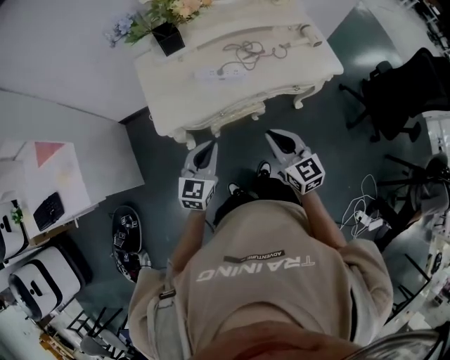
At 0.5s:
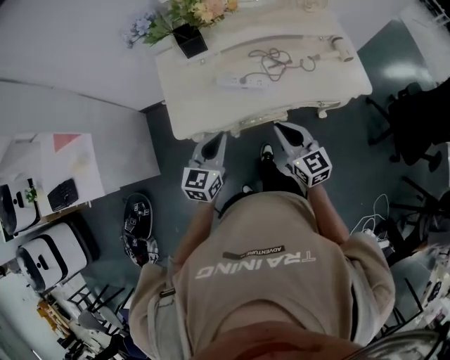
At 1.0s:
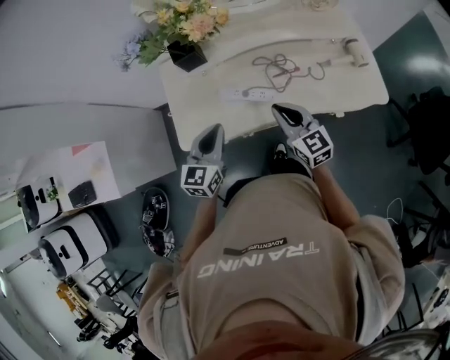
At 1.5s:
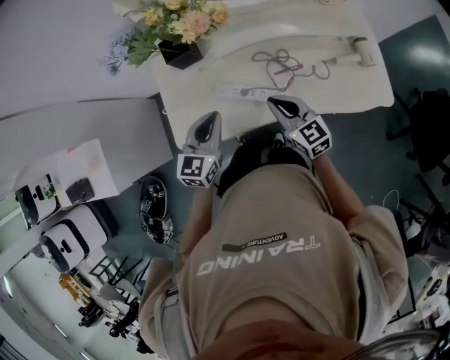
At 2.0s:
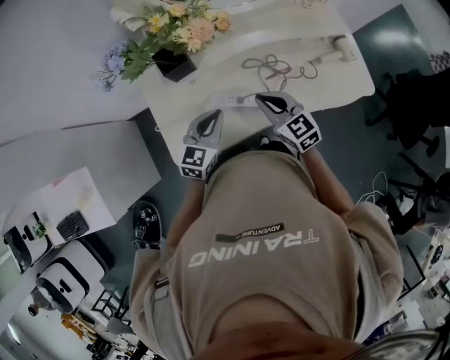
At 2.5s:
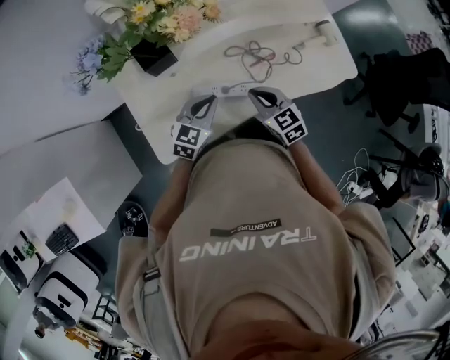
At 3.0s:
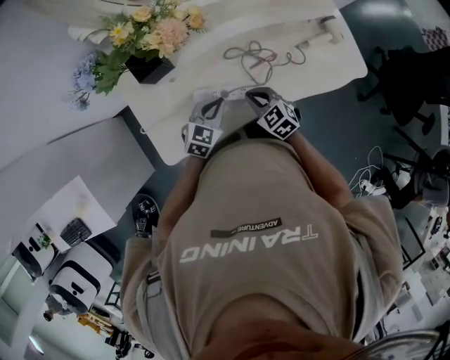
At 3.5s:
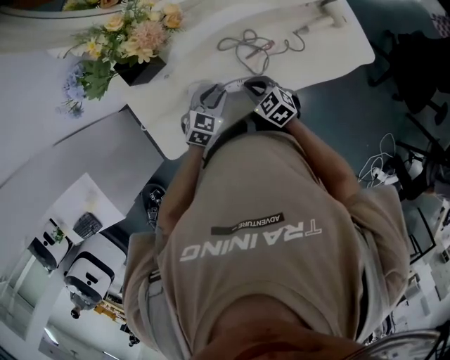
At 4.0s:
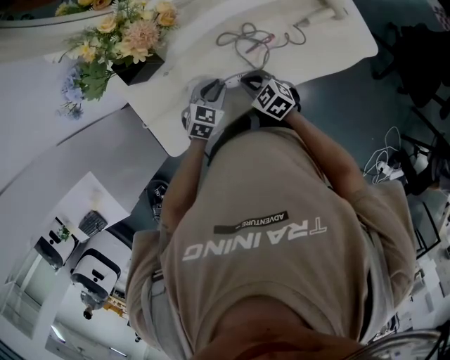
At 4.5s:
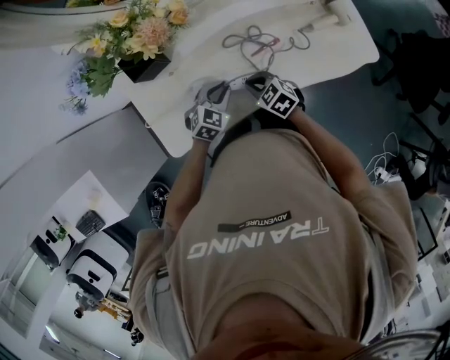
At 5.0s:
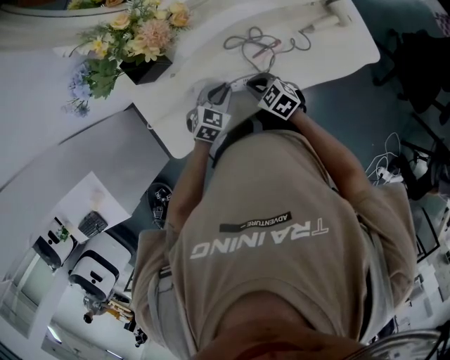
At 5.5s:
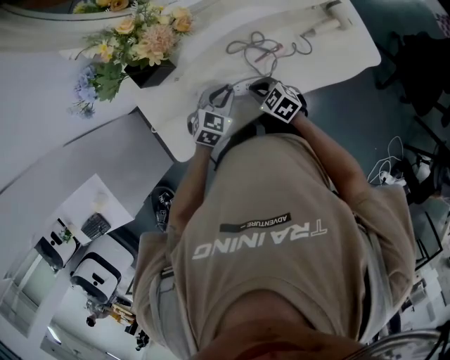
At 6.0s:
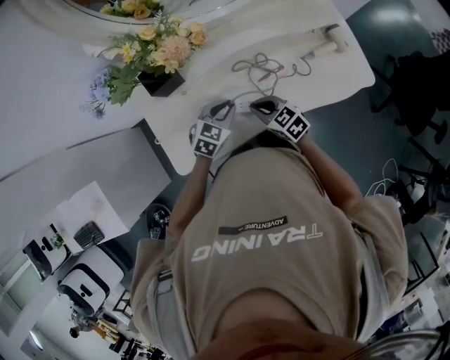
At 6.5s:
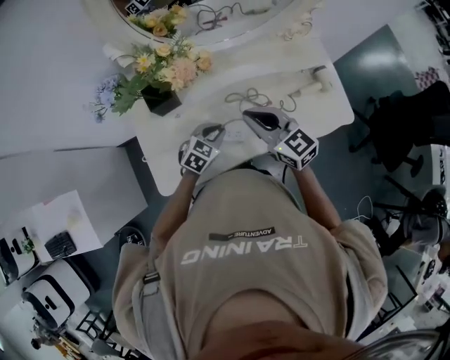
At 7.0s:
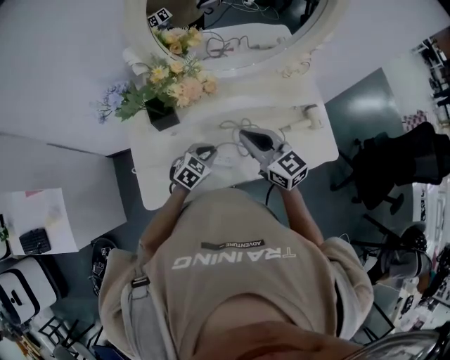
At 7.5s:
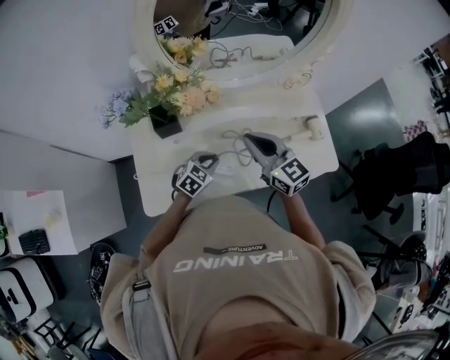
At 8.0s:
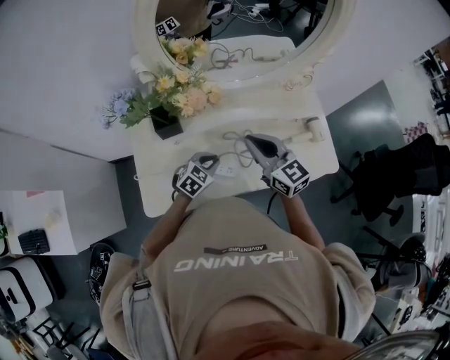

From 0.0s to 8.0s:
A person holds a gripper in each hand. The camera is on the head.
From 0.0s to 2.0s: The grippers both shift forward by approximately 30 cm.
From 2.0s to 4.0s: The right gripper travels downward by some 15 cm, and turns by some 20 degrees, while the left gripper shifts roughly 15 cm downward and to the right, and changes its angle by about 30 degrees.
From 4.0s to 6.0s: Both grippers move upward, some 5 cm.
From 6.0s to 8.0s: The right gripper travels upward by roughly 25 cm, and changes its angle by about 30 degrees.

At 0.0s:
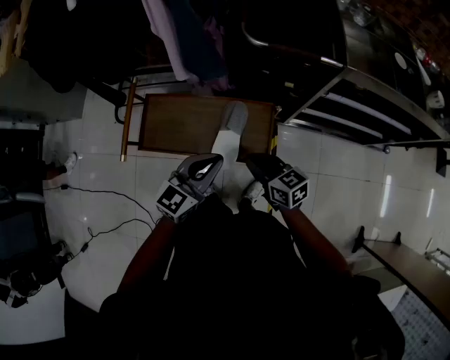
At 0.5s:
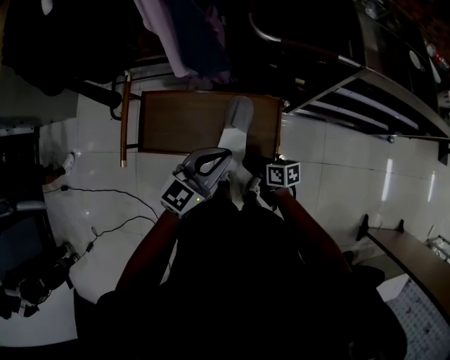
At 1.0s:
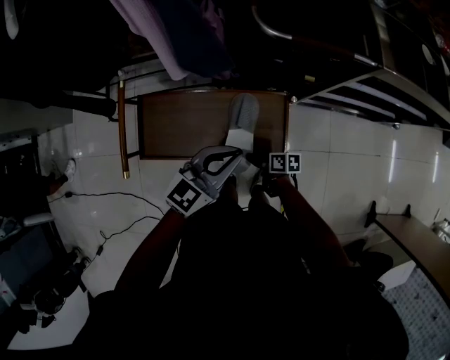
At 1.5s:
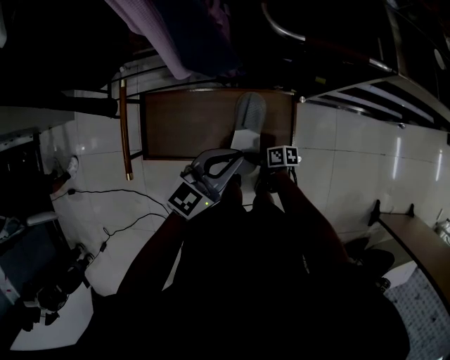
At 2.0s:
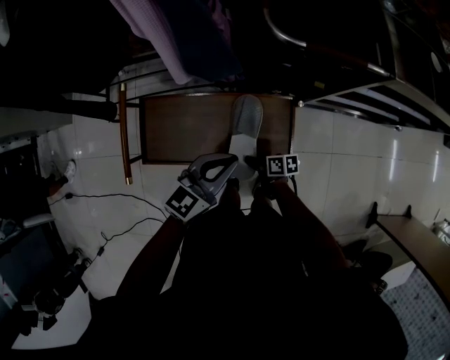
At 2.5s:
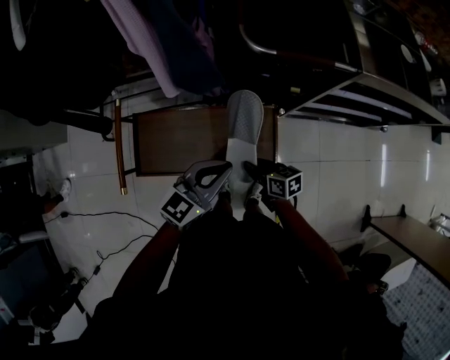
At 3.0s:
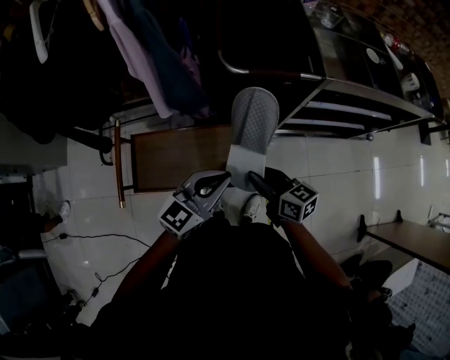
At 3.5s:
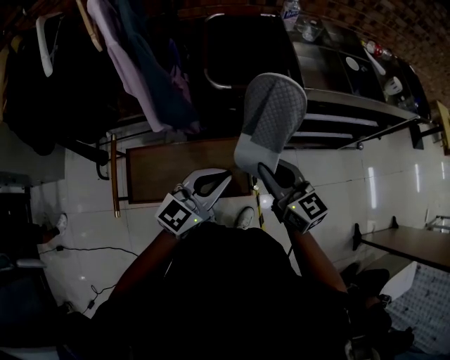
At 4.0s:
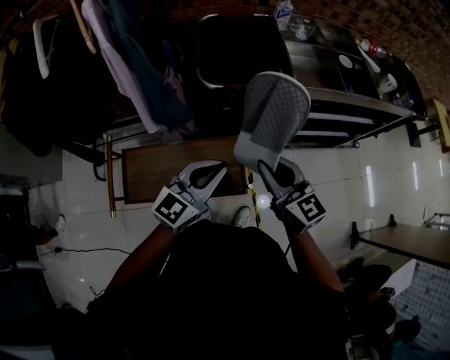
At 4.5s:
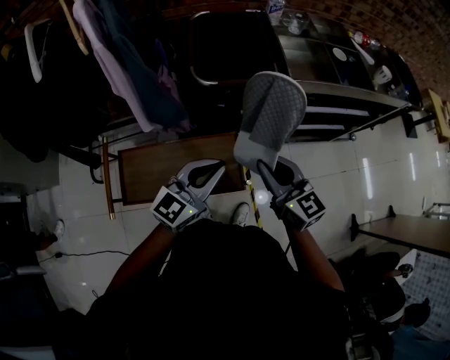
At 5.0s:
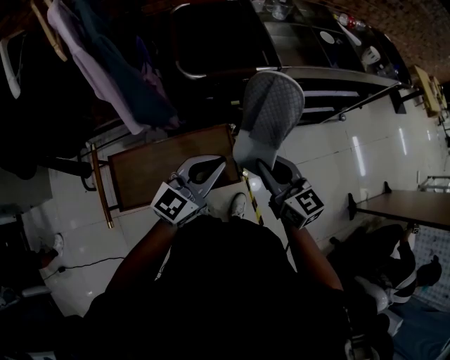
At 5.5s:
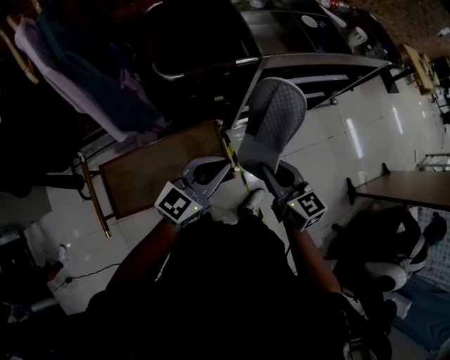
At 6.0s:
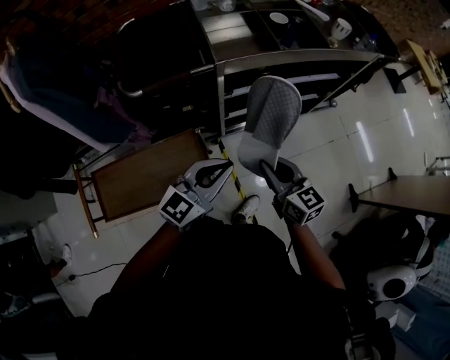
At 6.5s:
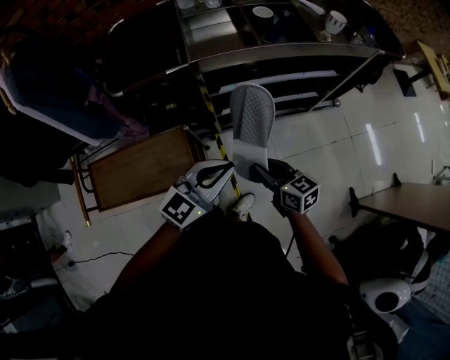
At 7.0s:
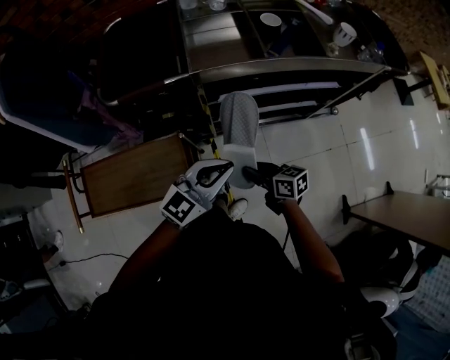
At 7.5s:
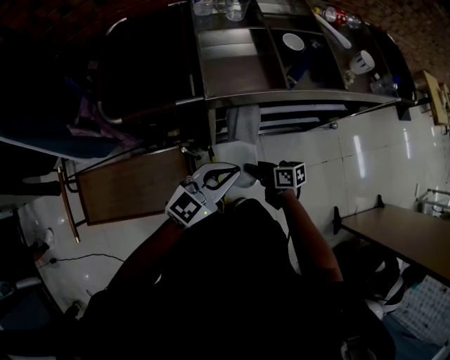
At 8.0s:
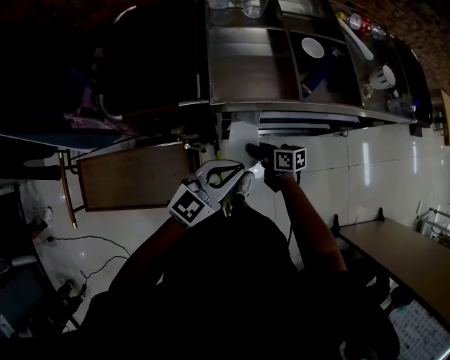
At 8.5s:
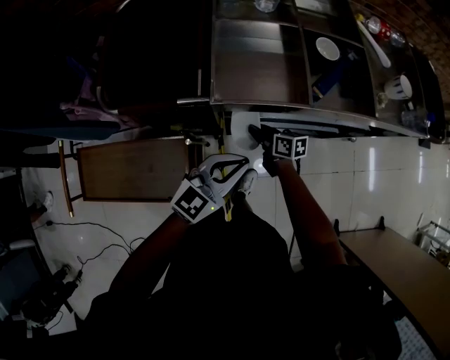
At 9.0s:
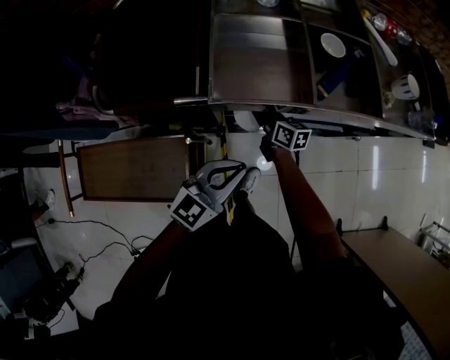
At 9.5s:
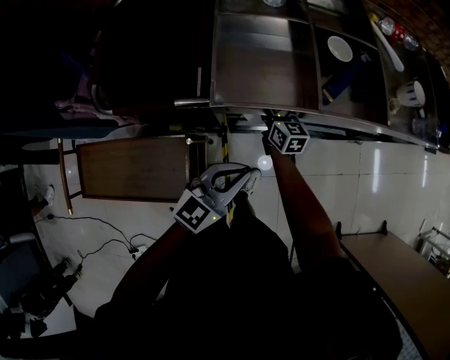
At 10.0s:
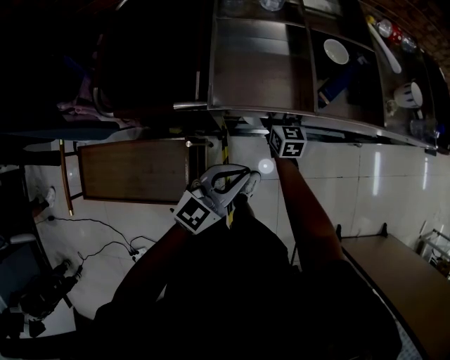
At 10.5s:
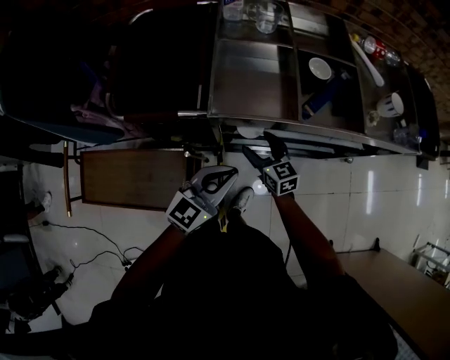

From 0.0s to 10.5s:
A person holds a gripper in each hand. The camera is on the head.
From 0.0s to 2.0s: The right gripper shifts some 25 cm downward, rotates around the line of its fingers by roughly 40 degrees, clockwise from behind, and opens and closes again, while the left gripper ends up approximately 15 cm from where it was.
From 2.0s to 4.0s: The left gripper shifts about 20 cm upward and to the right. The right gripper is displaced upward by approximately 40 cm, and swivels about 70 degrees.
From 4.0s to 6.5s: The left gripper heads to the right, covering roughly 30 cm, while the right gripper travels to the right and downward by some 35 cm, and changes its angle by approximately 30 degrees.
From 6.5s to 8.5s: The left gripper heads forward, covering roughly 20 cm, while the right gripper travels forward and downward by roughly 35 cm, and rotates roughly 20 degrees.
From 8.5s to 10.5s: The right gripper is displaced upward by approximately 5 cm, travels forward and back again, roughly 10 cm each way, rotates roughly 40 degrees, and opens.

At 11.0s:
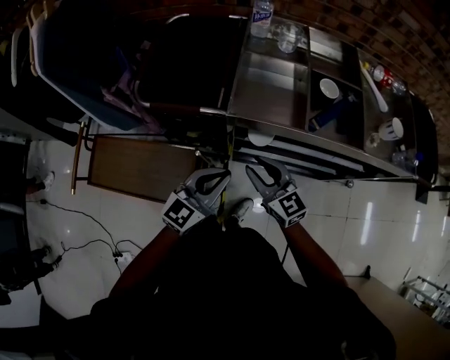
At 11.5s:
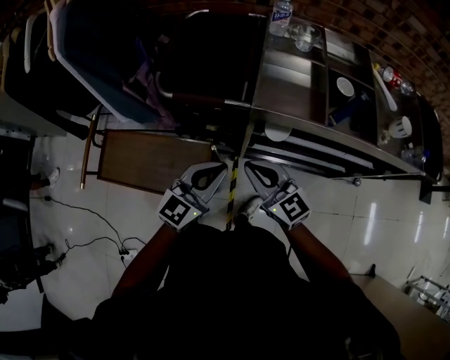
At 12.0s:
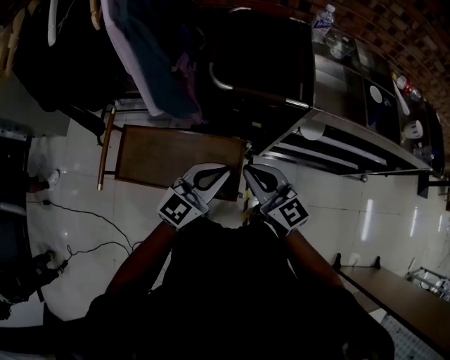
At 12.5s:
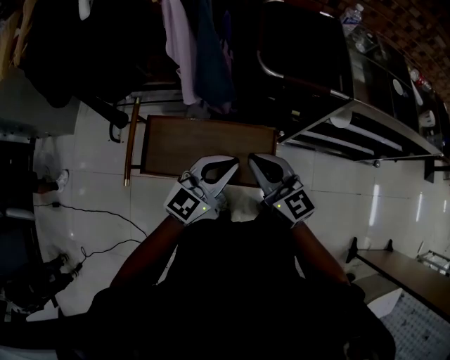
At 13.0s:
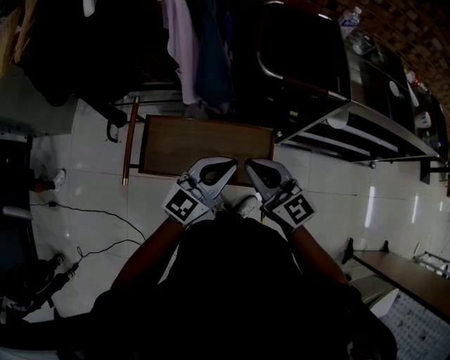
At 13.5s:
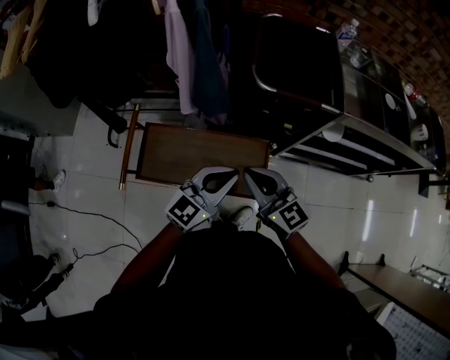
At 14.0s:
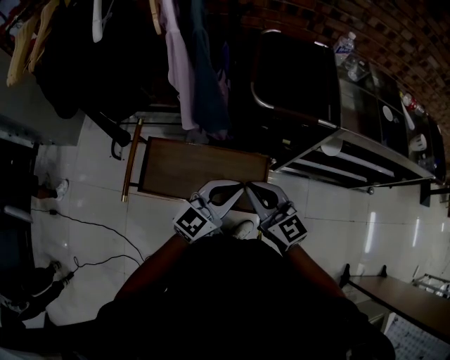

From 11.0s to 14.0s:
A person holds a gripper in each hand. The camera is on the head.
From 11.0s to 12.5s: Both grippers move to the left, some 40 cm. The right gripper closes up.
From 12.5s to 14.0s: The grippers move only a little.

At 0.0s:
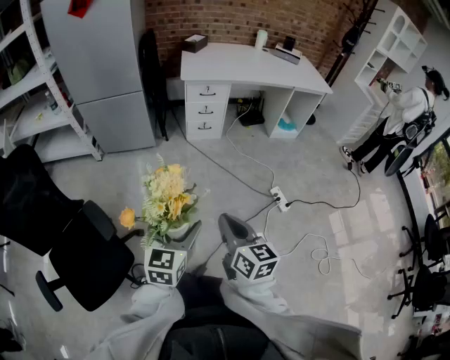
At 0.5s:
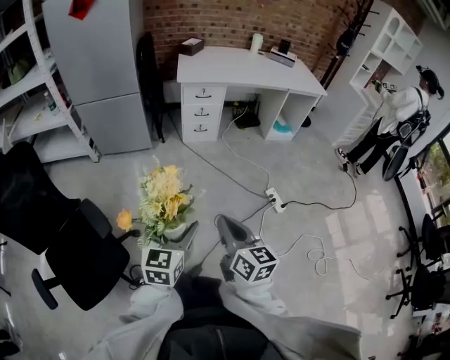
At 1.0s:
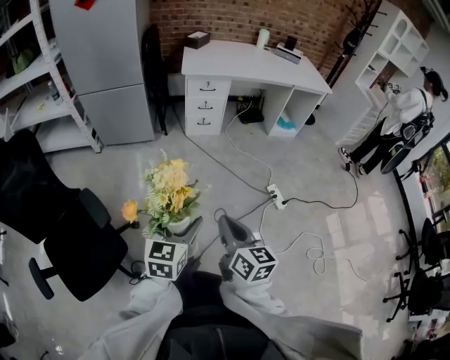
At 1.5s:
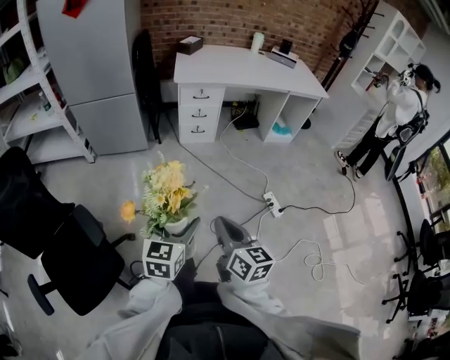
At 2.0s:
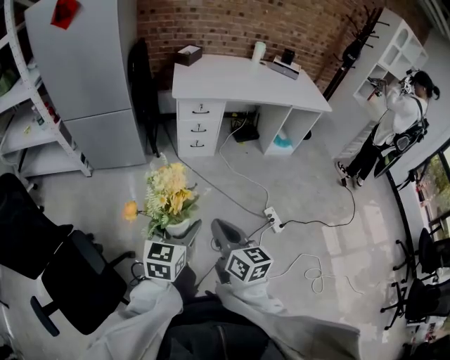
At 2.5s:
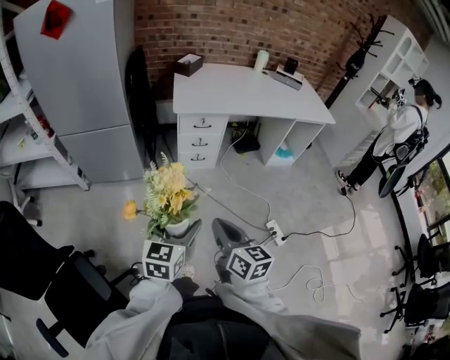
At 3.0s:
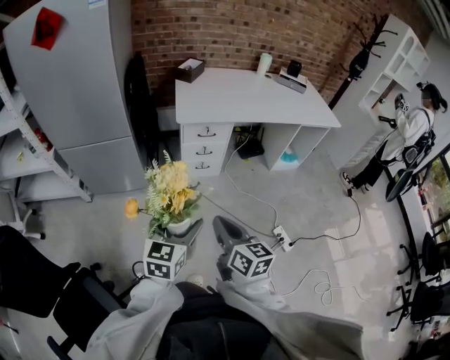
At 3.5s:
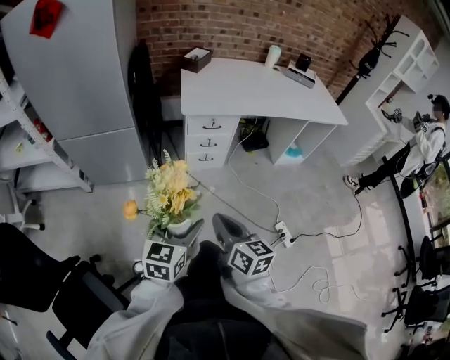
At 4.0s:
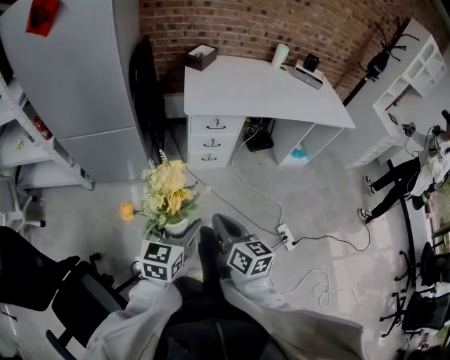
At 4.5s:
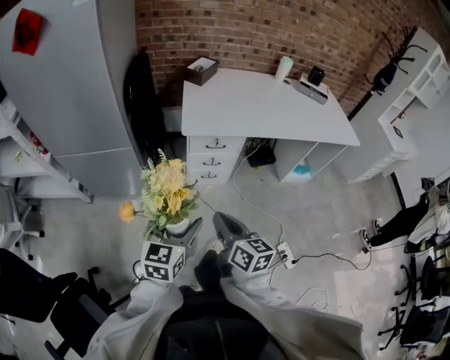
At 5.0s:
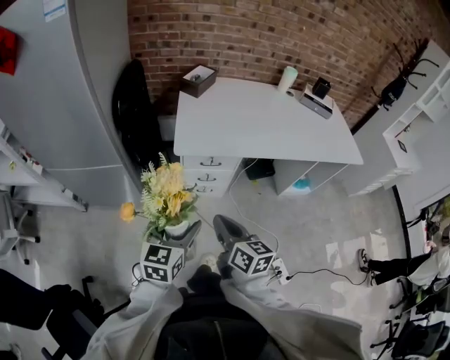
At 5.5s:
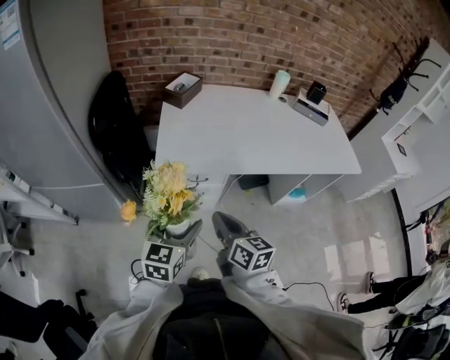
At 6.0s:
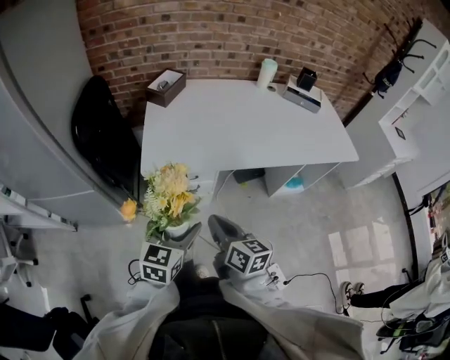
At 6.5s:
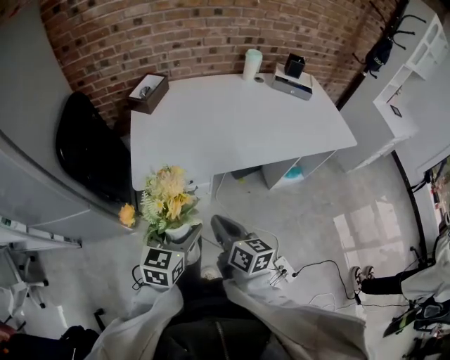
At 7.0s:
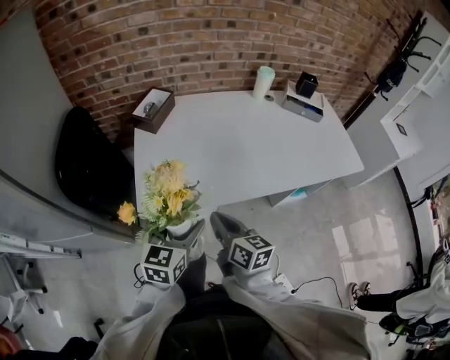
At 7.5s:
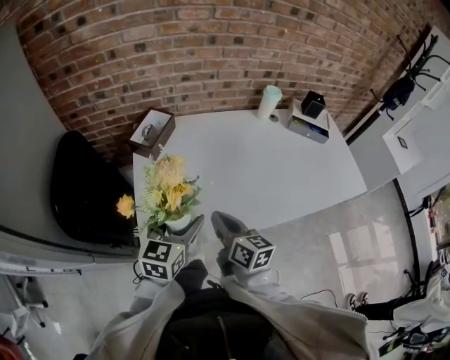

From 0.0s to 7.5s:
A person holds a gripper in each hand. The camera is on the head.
From 0.0s to 2.0s: Both grippers move forward, about 15 cm.
From 2.0s to 4.0s: Both grippers move forward, approximately 25 cm.
From 4.0s to 5.5s: The right gripper travels forward by approximately 35 cm, while the left gripper shifts roughly 35 cm forward and to the right.
From 5.5s to 7.5s: Both grippers move forward, roughly 30 cm.
